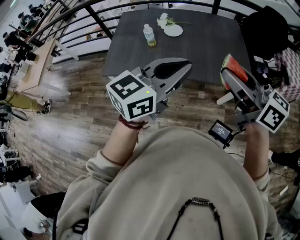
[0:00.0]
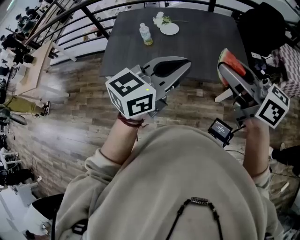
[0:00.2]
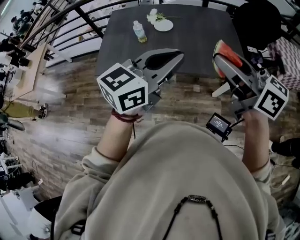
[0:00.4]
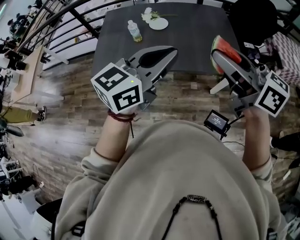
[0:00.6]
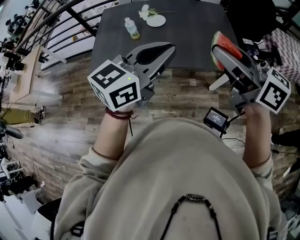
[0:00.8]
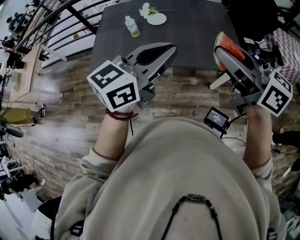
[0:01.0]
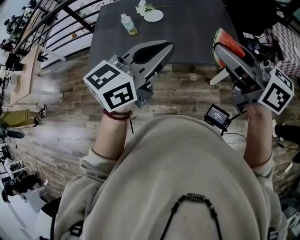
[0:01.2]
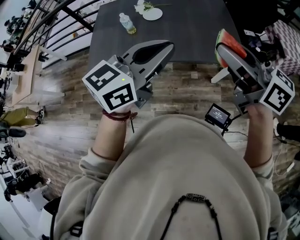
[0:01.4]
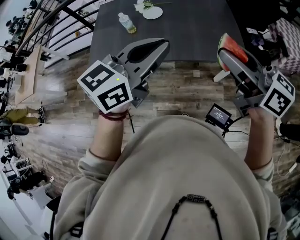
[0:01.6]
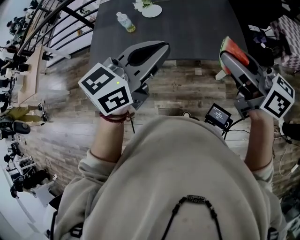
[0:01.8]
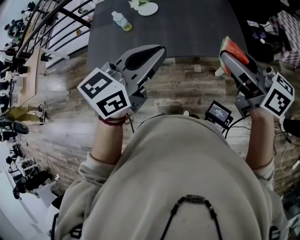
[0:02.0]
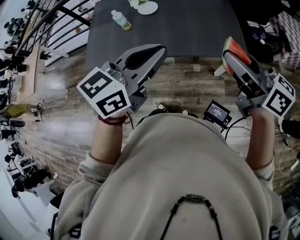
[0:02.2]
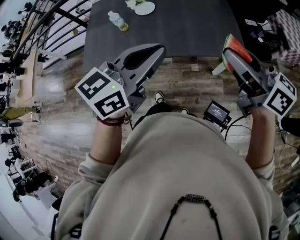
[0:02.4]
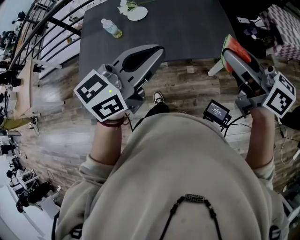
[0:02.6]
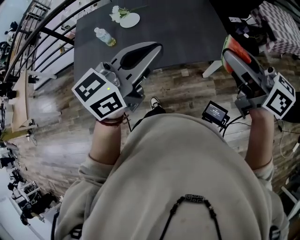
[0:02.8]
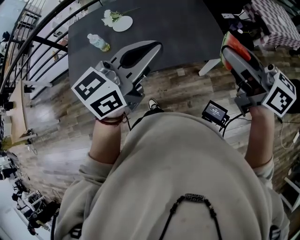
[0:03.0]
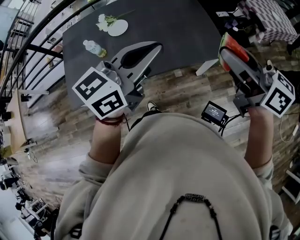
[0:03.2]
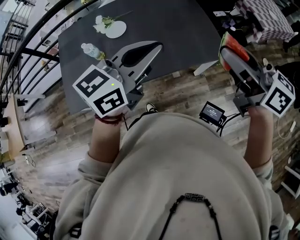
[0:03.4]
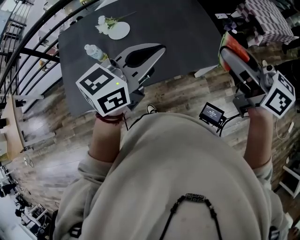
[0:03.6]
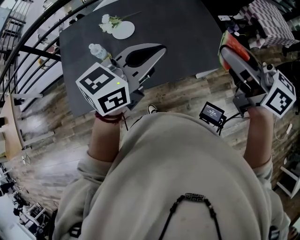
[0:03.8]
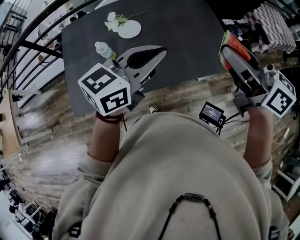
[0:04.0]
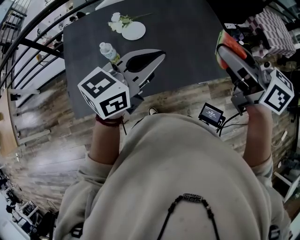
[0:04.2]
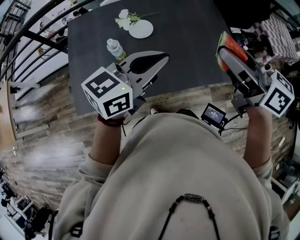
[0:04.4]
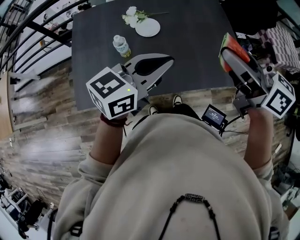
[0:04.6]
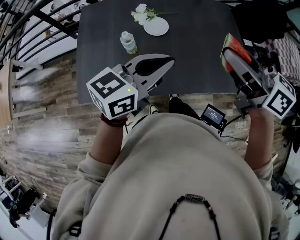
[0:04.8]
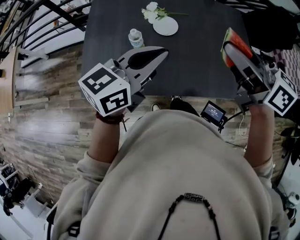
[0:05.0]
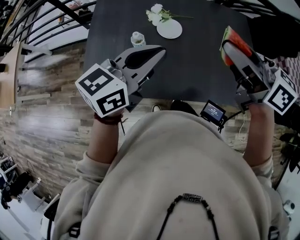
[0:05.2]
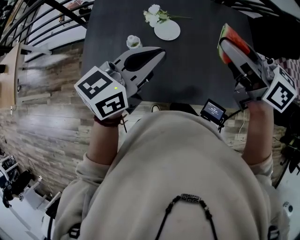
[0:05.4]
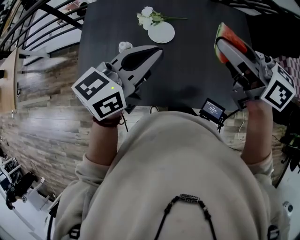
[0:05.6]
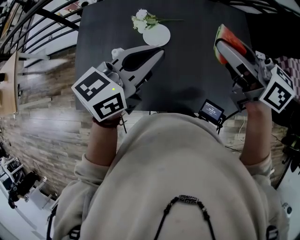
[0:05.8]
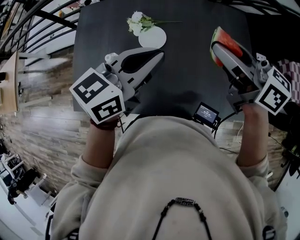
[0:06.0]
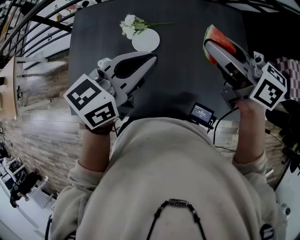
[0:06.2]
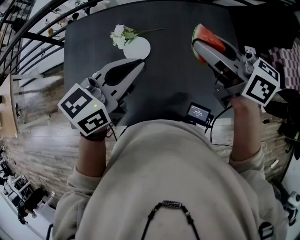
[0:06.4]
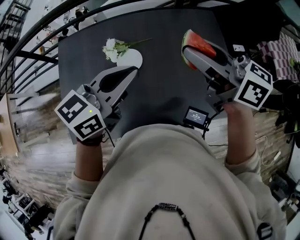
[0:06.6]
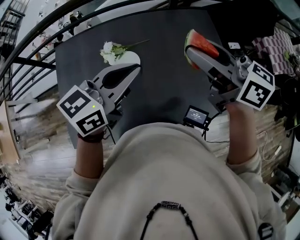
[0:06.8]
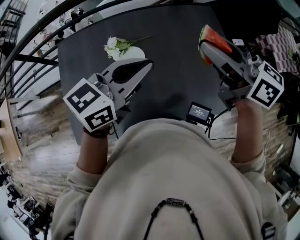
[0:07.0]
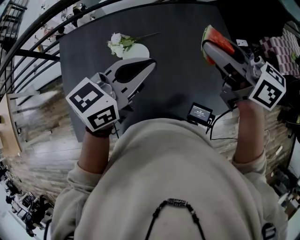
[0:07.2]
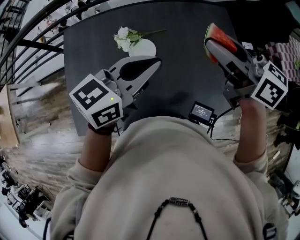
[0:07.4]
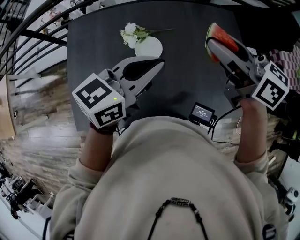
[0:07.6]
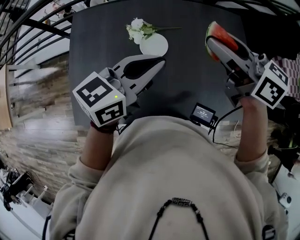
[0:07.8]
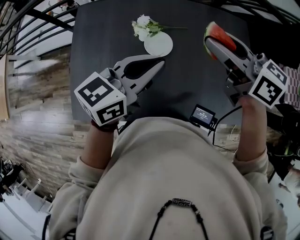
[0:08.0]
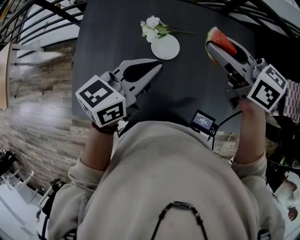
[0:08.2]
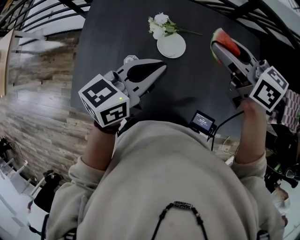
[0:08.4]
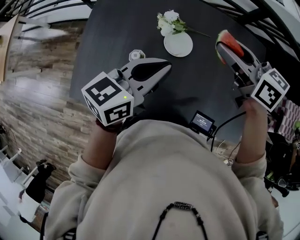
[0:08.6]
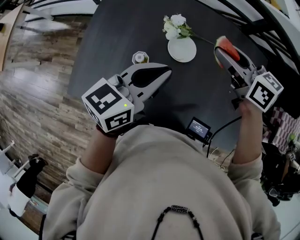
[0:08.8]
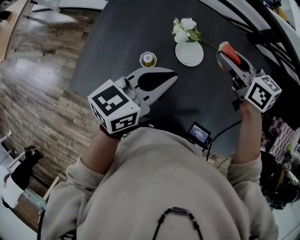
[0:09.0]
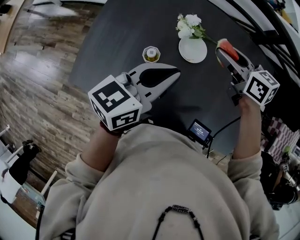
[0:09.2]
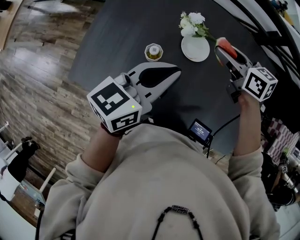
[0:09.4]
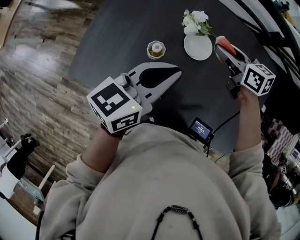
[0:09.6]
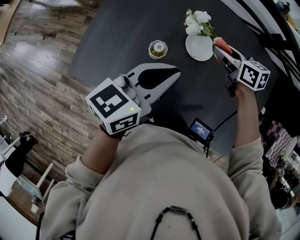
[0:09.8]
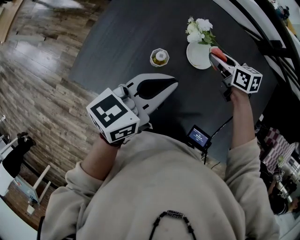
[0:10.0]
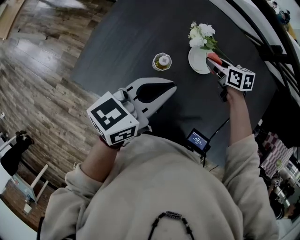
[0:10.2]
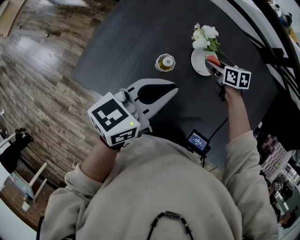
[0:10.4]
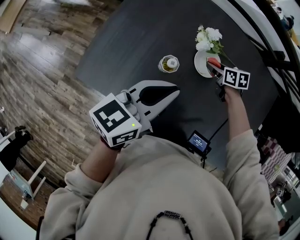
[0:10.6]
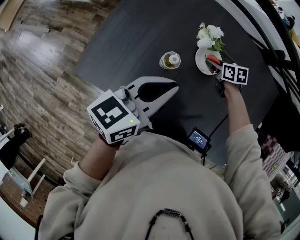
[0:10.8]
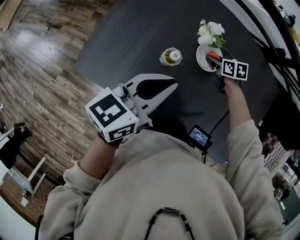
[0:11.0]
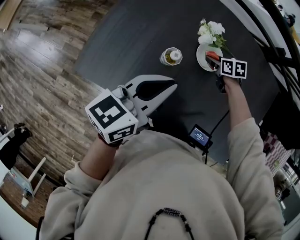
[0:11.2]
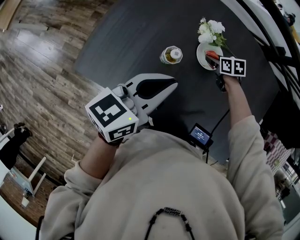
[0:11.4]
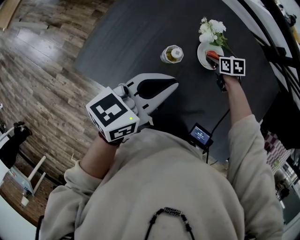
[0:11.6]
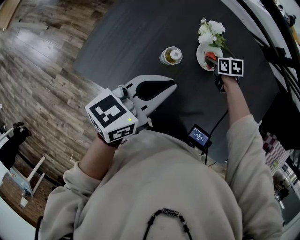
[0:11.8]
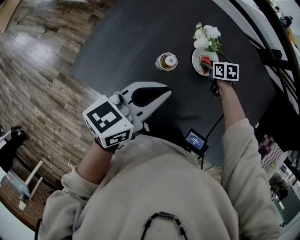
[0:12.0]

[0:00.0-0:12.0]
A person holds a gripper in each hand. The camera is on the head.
0:00.0 to 0:01.6: The right gripper travels to the right by approximately 5 cm.
0:01.6 to 0:03.0: The left gripper heads forward, covering some 5 cm; the right gripper heads to the right, covering roughly 5 cm.
0:03.0 to 0:04.4: The two grippers go about 20 cm to the left and forward.
0:04.4 to 0:06.0: The grippers both shift forward by roughly 20 cm.
0:06.0 to 0:07.6: The right gripper ends up some 5 cm from where it was.
0:07.6 to 0:09.0: The right gripper shifts some 20 cm downward, to the left and forward, and turns by roughly 30 degrees. The left gripper heads to the left and downward, covering roughly 10 cm, and turns by some 30 degrees.
0:09.0 to 0:10.4: The left gripper moves to the left, roughly 5 cm. Meanwhile the right gripper goes approximately 25 cm downward, and rotates about 20 degrees.
0:10.4 to 0:12.0: The right gripper is displaced downward by about 5 cm.

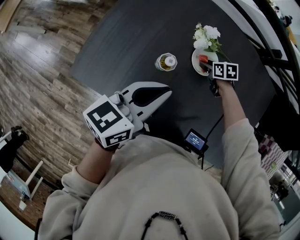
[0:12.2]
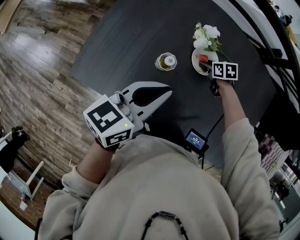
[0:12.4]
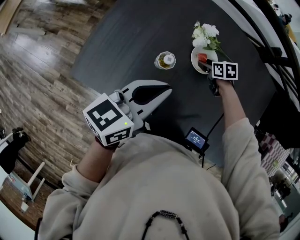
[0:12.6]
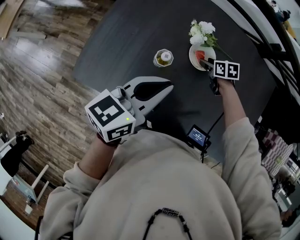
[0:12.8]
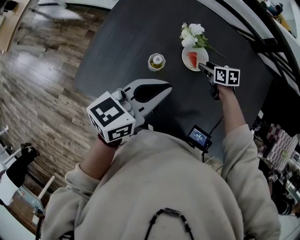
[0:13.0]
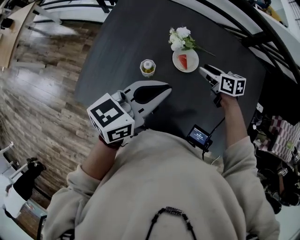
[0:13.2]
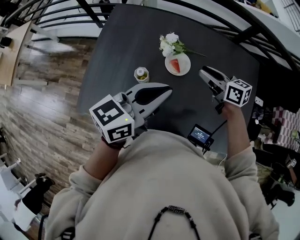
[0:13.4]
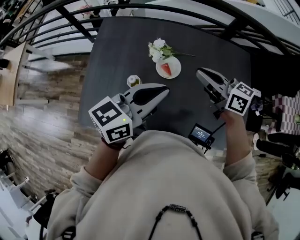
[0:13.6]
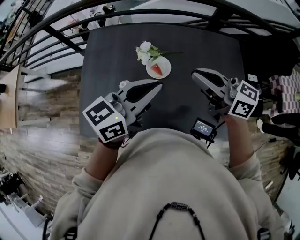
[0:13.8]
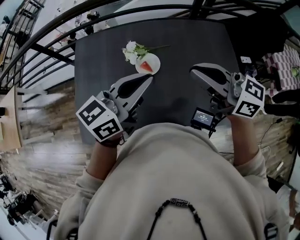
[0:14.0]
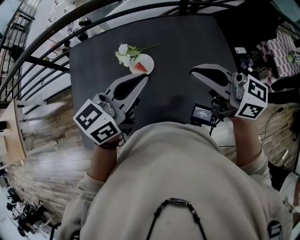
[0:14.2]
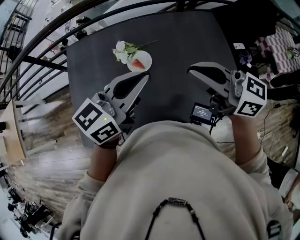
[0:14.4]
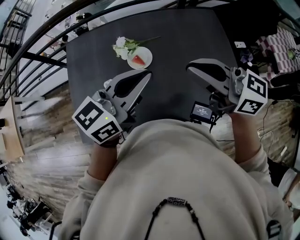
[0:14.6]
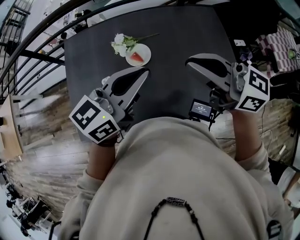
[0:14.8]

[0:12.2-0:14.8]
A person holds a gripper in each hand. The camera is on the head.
0:12.2 to 0:13.4: The left gripper shifts approximately 15 cm upward and to the right; the right gripper travels upward by some 25 cm, and tips its fingers upward by approximately 40 degrees.
0:13.4 to 0:14.8: The right gripper moves upward and backward, some 25 cm, rotates some 30 degrees, and closes up. The left gripper is displaced to the right by approximately 10 cm.

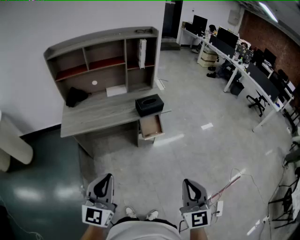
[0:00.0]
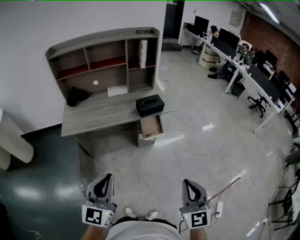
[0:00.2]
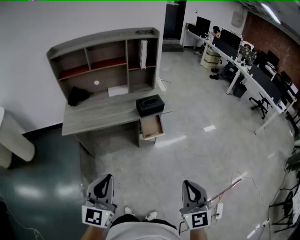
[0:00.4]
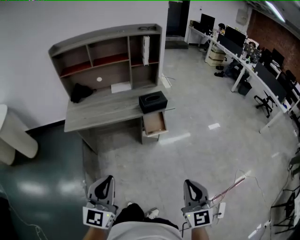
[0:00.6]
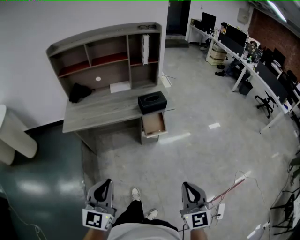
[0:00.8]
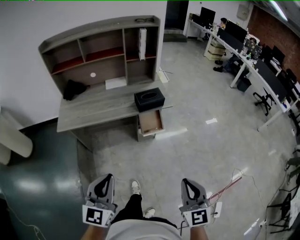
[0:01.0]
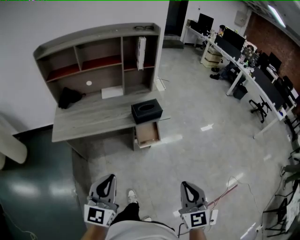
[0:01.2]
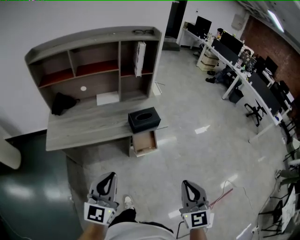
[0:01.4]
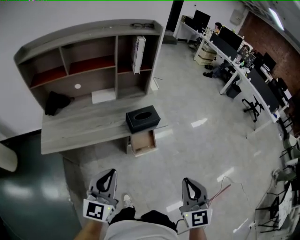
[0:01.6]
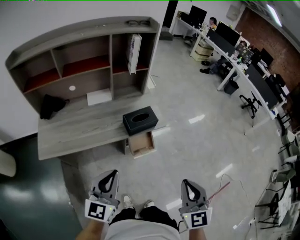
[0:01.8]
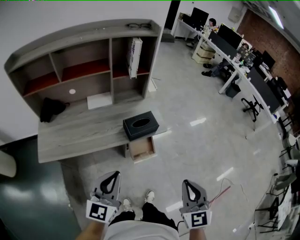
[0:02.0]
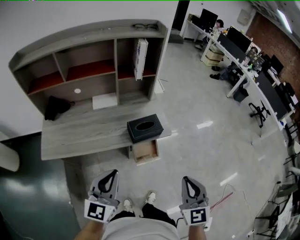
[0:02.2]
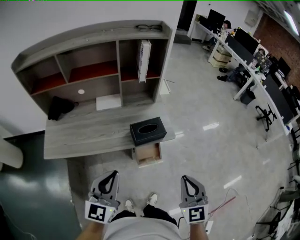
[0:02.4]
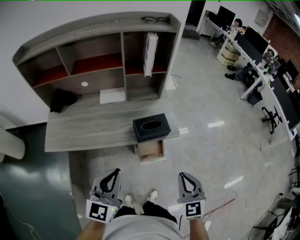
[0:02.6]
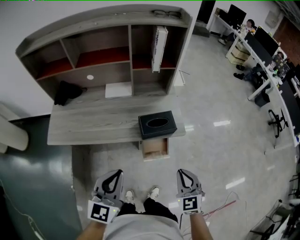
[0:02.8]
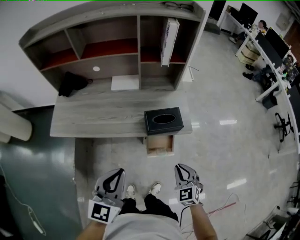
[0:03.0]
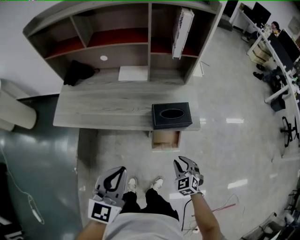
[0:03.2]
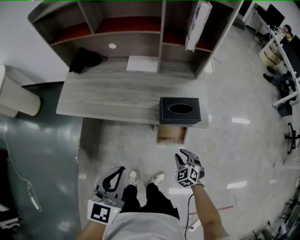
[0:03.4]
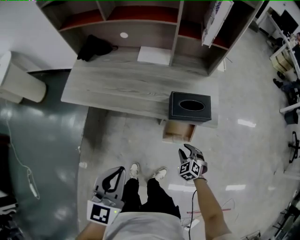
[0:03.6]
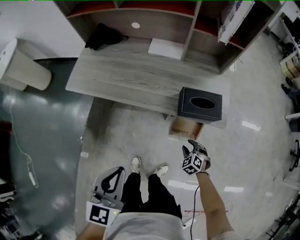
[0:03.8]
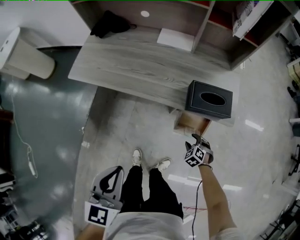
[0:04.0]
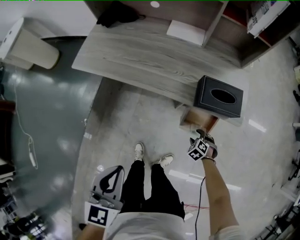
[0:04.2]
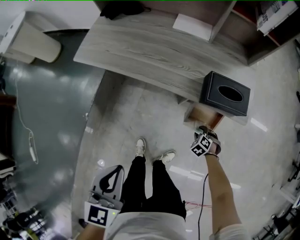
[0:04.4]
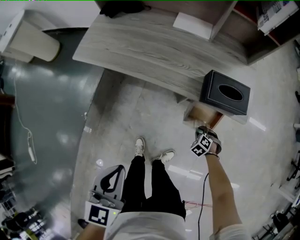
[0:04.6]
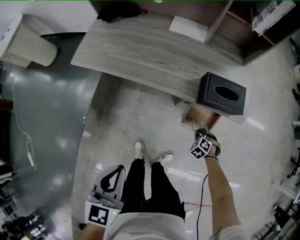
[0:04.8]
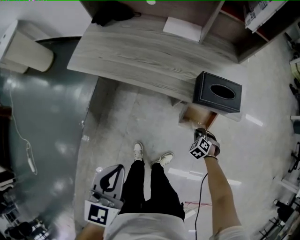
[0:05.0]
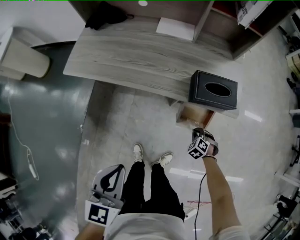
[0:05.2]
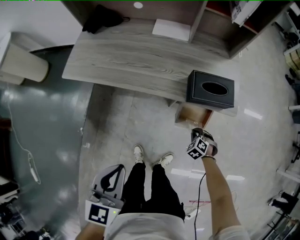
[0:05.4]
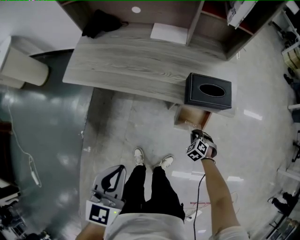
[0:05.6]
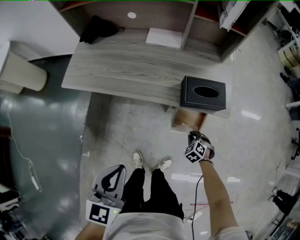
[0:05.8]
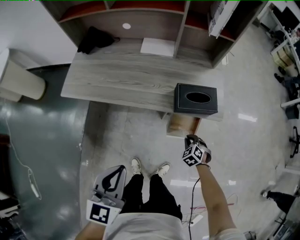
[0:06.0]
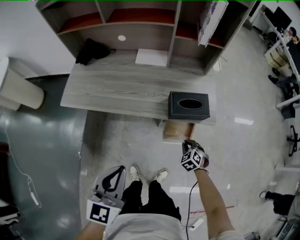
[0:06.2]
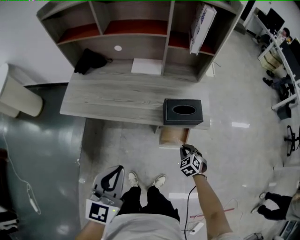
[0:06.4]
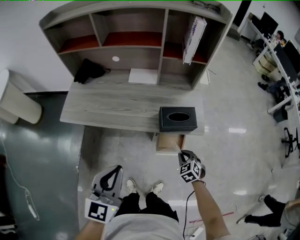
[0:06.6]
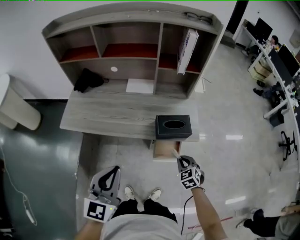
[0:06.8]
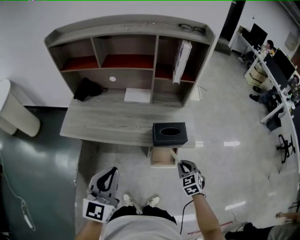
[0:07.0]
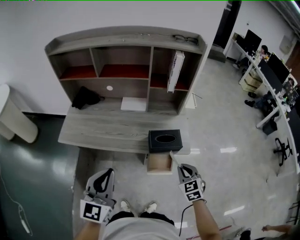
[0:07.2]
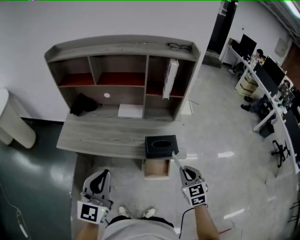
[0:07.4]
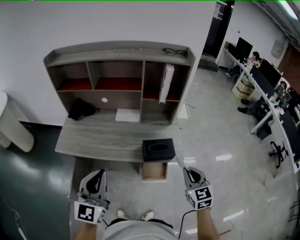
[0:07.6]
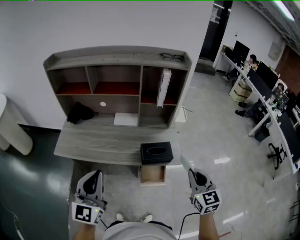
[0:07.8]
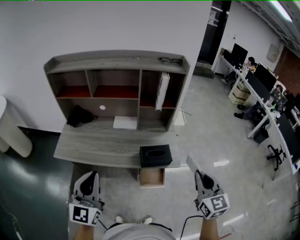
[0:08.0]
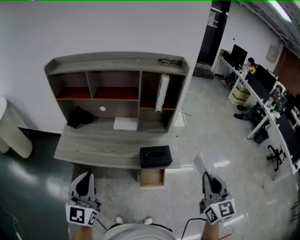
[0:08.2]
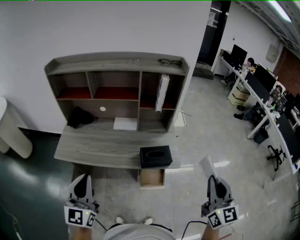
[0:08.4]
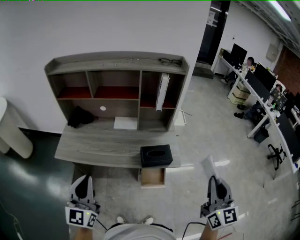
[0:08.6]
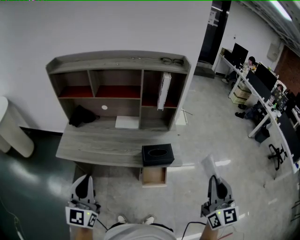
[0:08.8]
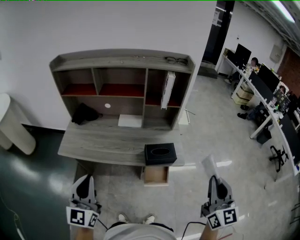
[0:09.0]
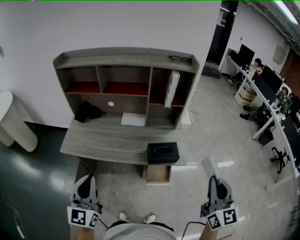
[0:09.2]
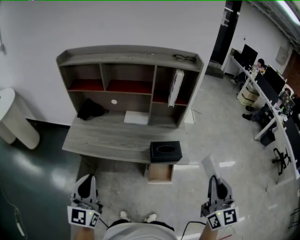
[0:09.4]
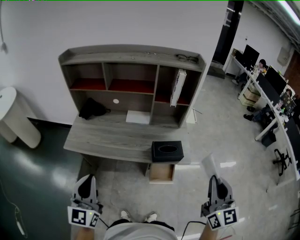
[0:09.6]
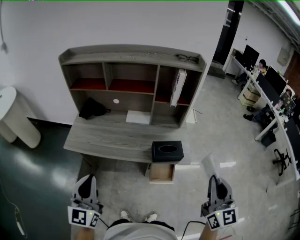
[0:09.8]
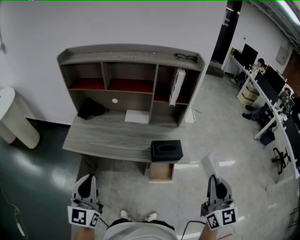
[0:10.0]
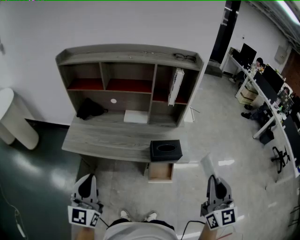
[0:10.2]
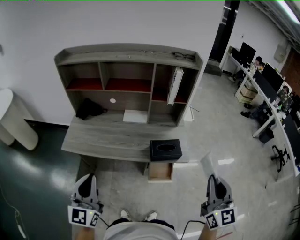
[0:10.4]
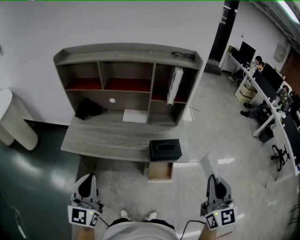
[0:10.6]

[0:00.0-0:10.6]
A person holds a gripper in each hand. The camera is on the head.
0:00.0 to 0:01.6: Both grippers move forward, about 25 cm.
0:01.6 to 0:03.0: The right gripper heads downward and forward, covering approximately 30 cm, and swivels some 30 degrees. Meanwhile the left gripper is displaced forward by about 10 cm.
0:03.0 to 0:04.6: The right gripper shifts about 35 cm downward, angles its fingers downward, by some 40 degrees, and opens, then closes once more. The left gripper shifts by roughly 20 cm, and rotates some 30 degrees.
0:04.6 to 0:06.0: The left gripper moves some 10 cm. The right gripper travels upward by about 10 cm, and rotates approximately 20 degrees.
0:06.0 to 0:07.6: The right gripper goes roughly 40 cm upward, and angles its fingers upward, by some 40 degrees, while the left gripper shifts roughly 15 cm upward, and turns by some 20 degrees.
0:07.6 to 0:09.0: The right gripper heads upward and backward, covering roughly 20 cm, and swivels roughly 30 degrees. Meanwhile the left gripper heads to the left, covering approximately 5 cm.
0:09.0 to 0:10.6: The grippers stay close to where they were, moving slightly.
